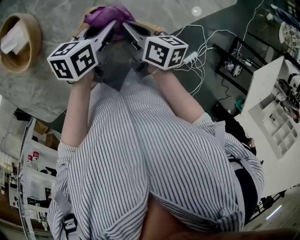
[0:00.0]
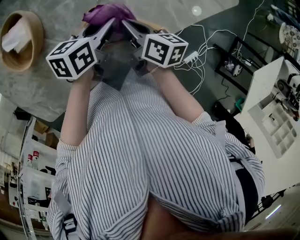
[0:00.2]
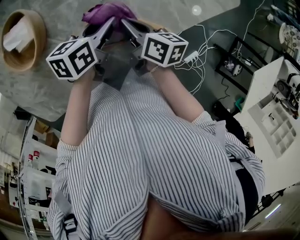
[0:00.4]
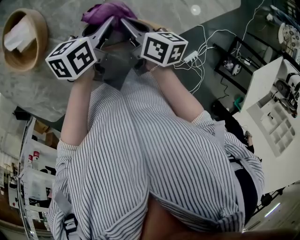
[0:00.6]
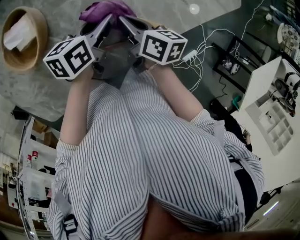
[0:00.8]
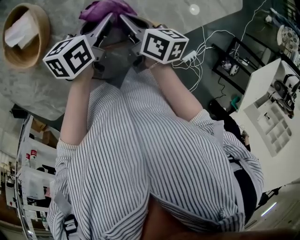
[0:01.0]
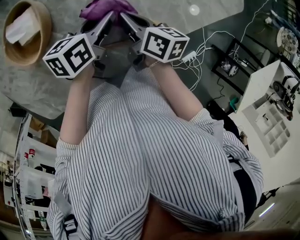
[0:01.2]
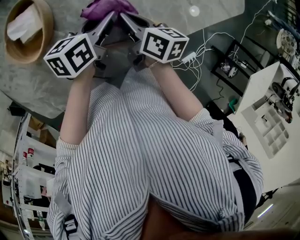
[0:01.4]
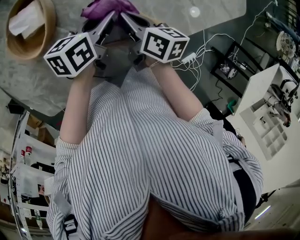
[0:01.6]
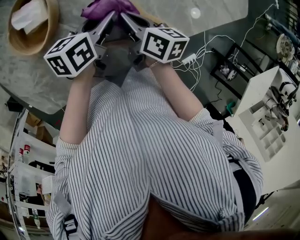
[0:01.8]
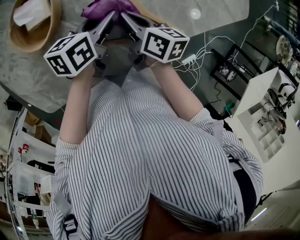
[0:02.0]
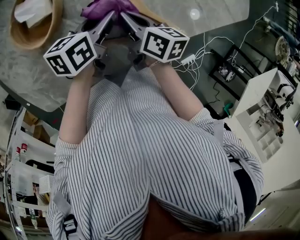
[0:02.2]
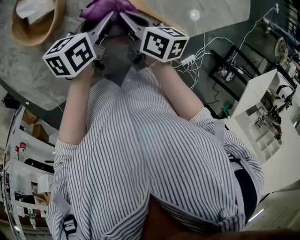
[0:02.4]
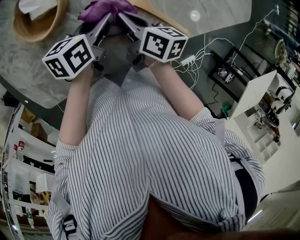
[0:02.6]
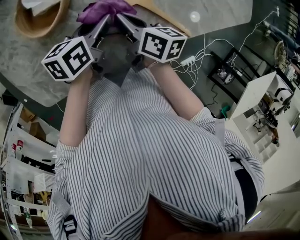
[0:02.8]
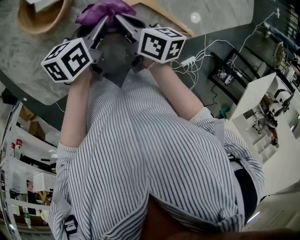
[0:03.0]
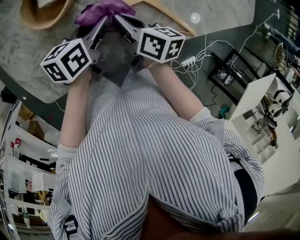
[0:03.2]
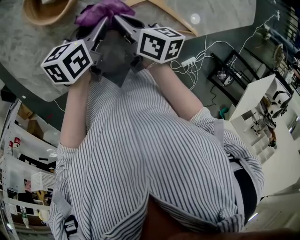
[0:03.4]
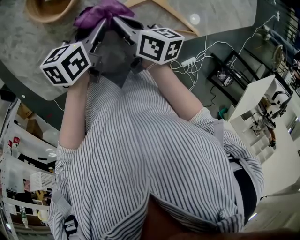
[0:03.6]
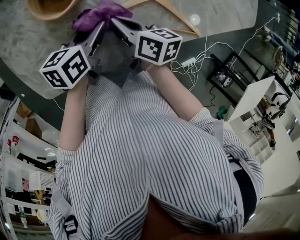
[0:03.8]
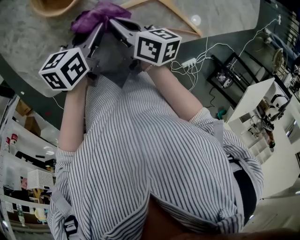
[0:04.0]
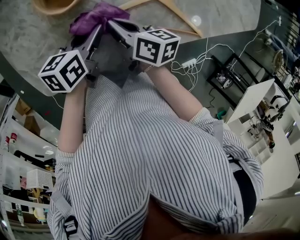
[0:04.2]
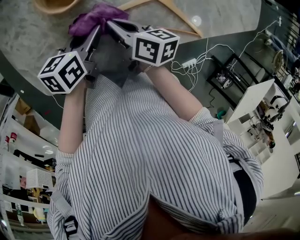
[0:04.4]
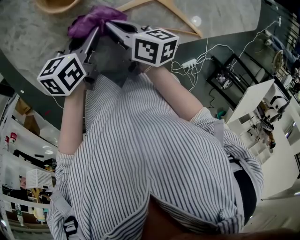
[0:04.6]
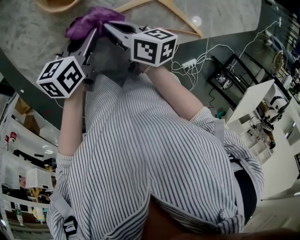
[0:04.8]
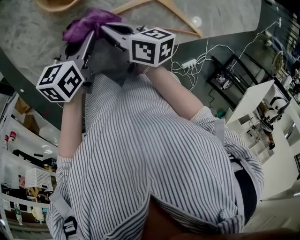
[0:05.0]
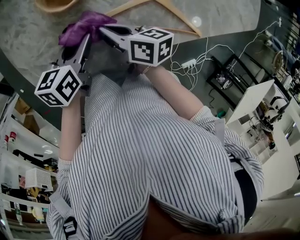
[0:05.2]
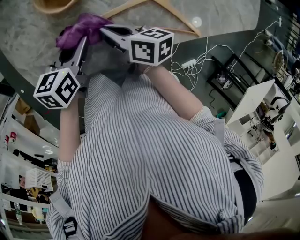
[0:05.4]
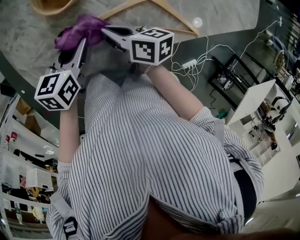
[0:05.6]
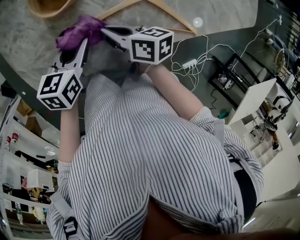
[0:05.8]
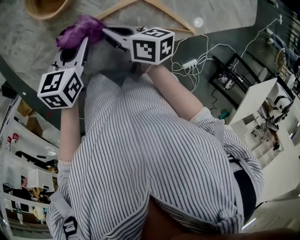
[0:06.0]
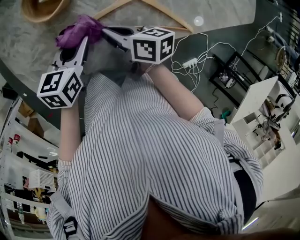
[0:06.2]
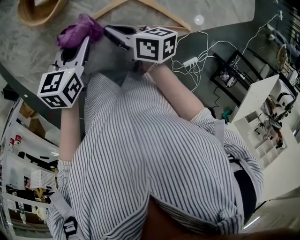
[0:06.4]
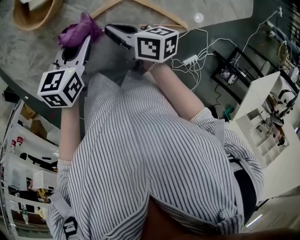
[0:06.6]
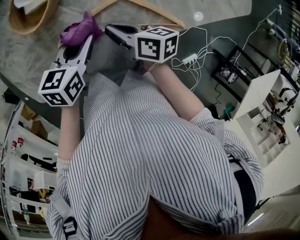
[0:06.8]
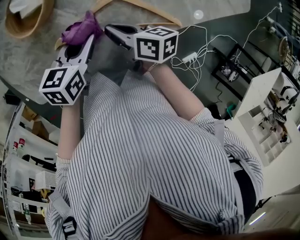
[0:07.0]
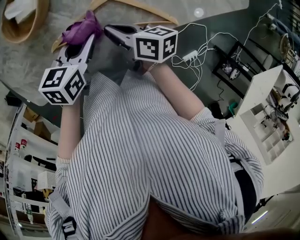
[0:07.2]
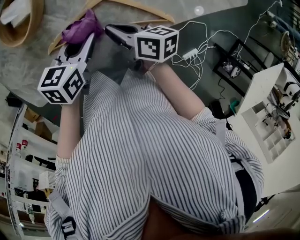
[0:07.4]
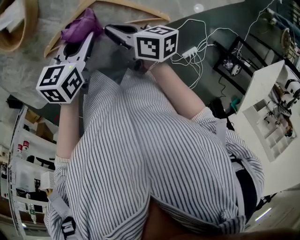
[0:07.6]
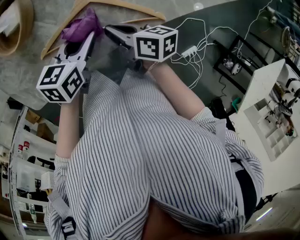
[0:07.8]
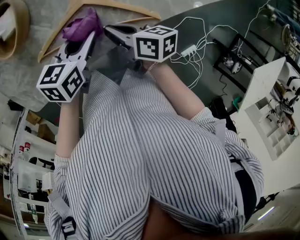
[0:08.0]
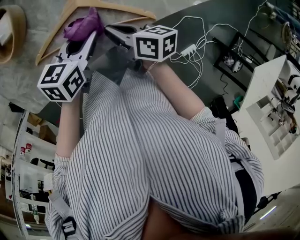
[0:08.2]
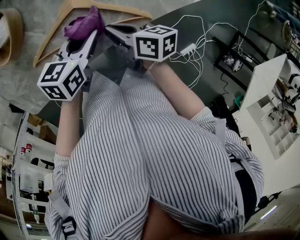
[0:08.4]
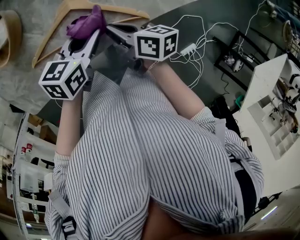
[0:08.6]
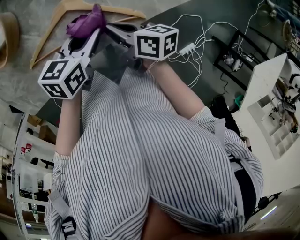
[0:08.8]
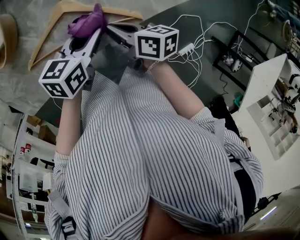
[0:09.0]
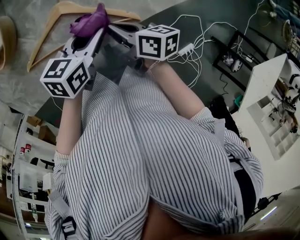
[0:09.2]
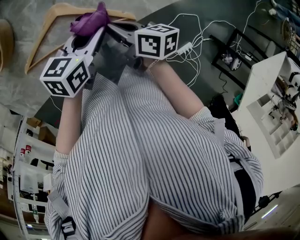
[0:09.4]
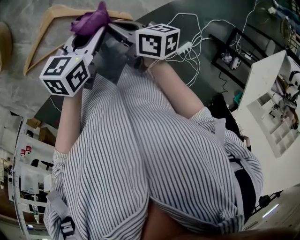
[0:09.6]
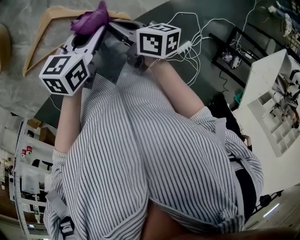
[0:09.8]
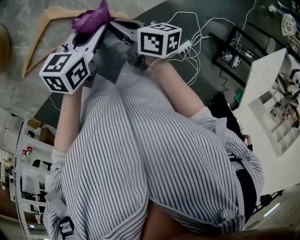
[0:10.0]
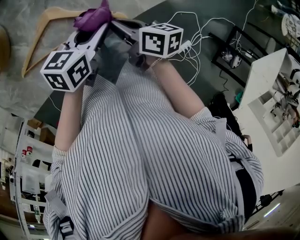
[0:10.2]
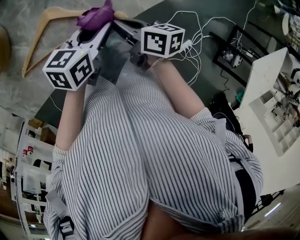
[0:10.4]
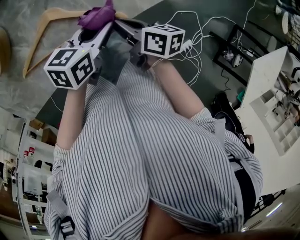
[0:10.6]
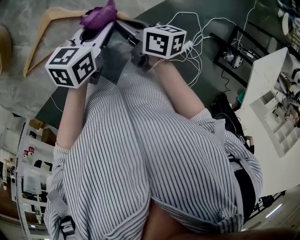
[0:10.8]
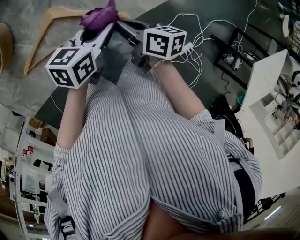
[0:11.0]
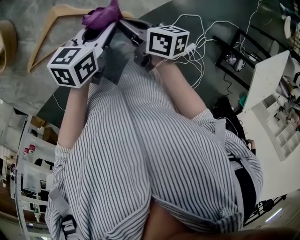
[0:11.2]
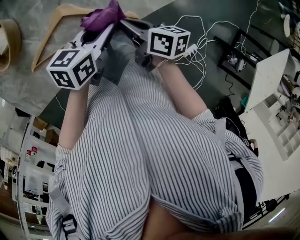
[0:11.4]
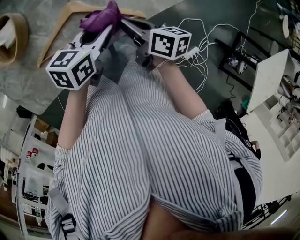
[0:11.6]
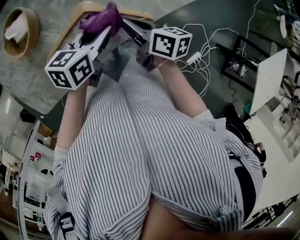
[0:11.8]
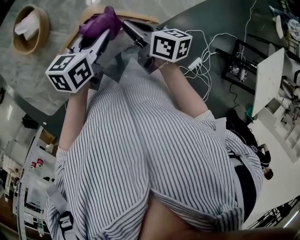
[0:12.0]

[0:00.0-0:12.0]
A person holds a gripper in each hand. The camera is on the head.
0:00.0 to 0:01.6: The grippers both shift to the left by roughly 10 cm.
0:01.6 to 0:03.0: The left gripper moves to the left and backward, about 10 cm. Meanwhile the right gripper shifts some 5 cm to the left.
0:03.0 to 0:04.4: The right gripper goes roughly 10 cm to the left. The left gripper travels to the left and backward by some 10 cm.
0:04.4 to 0:06.0: The grippers move only a little.
0:06.0 to 0:07.6: The two grippers go approximately 15 cm to the right.
0:07.6 to 0:09.0: The two grippers go about 10 cm to the right.
0:09.0 to 0:10.4: The two grippers go about 5 cm to the right.
0:10.4 to 0:12.0: Both grippers travel together to the left and upward, about 15 cm.

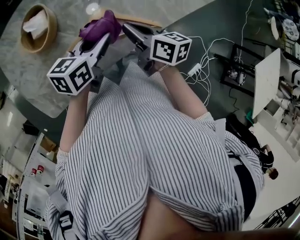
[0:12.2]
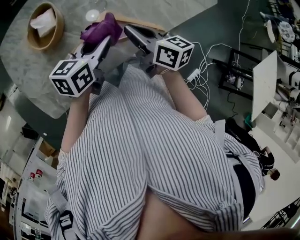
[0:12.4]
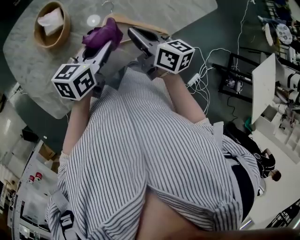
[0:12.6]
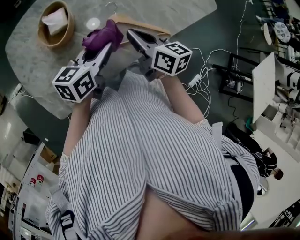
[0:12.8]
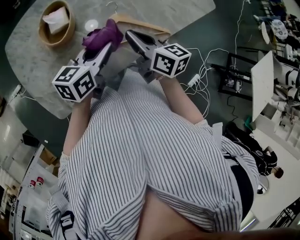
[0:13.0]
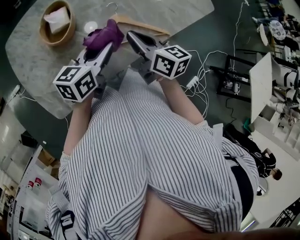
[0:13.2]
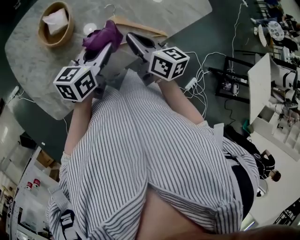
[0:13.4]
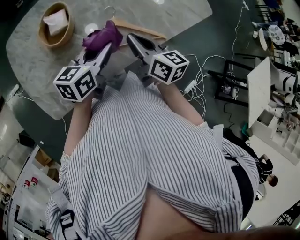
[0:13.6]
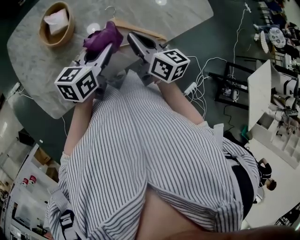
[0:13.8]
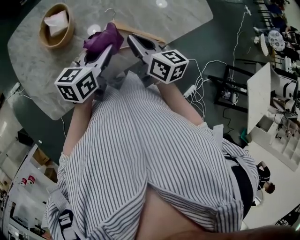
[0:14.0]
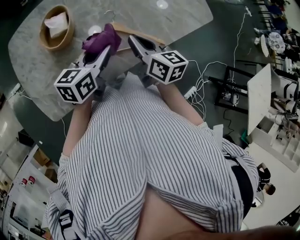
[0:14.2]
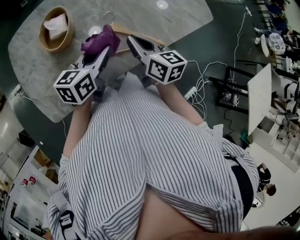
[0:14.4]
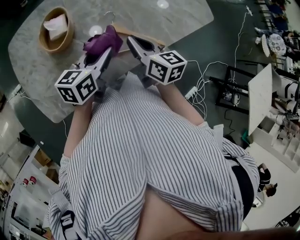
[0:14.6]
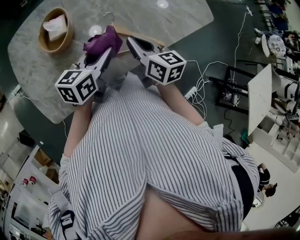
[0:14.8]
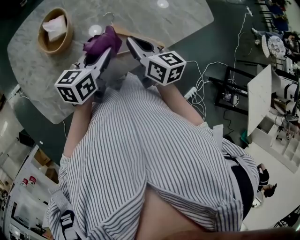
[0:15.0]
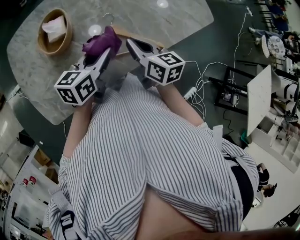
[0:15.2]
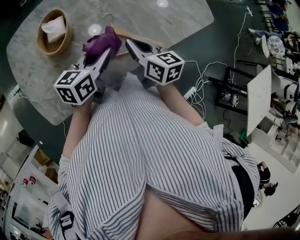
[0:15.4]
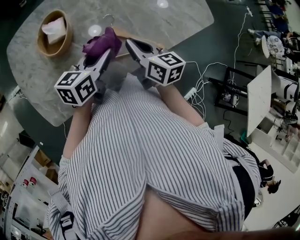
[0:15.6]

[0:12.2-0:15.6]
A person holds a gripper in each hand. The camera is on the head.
0:12.2 to 0:13.8: The right gripper moves upward, approximately 5 cm. Meanwhile the left gripper shifts some 5 cm to the left.
0:13.8 to 0:15.6: The grippers move only a little.

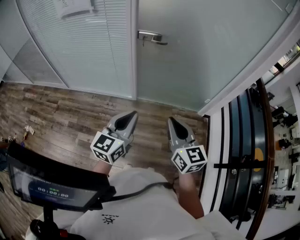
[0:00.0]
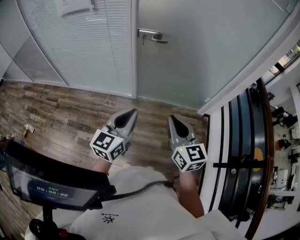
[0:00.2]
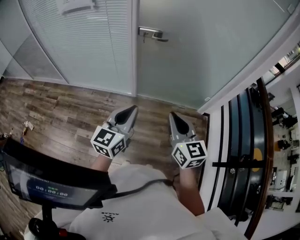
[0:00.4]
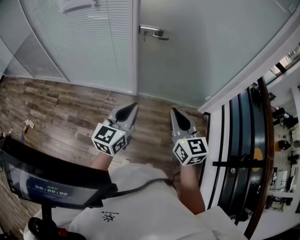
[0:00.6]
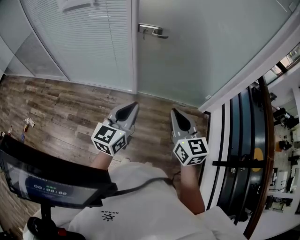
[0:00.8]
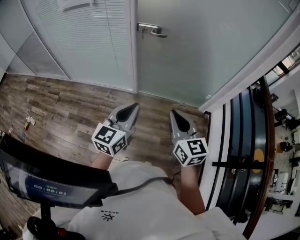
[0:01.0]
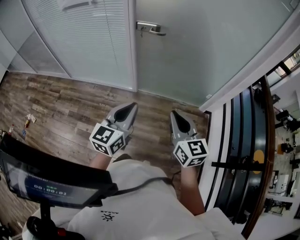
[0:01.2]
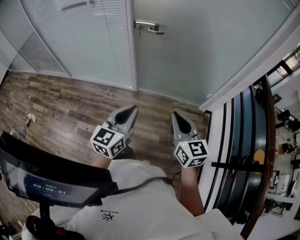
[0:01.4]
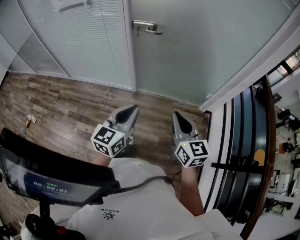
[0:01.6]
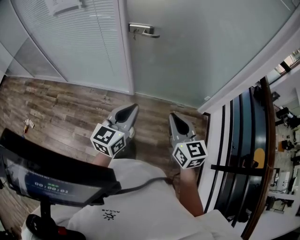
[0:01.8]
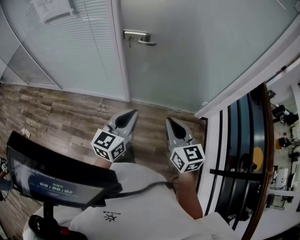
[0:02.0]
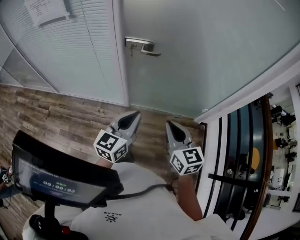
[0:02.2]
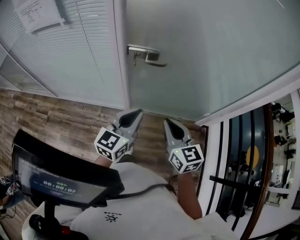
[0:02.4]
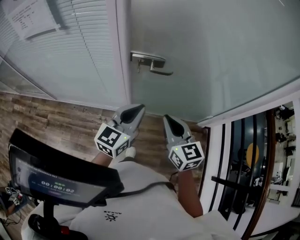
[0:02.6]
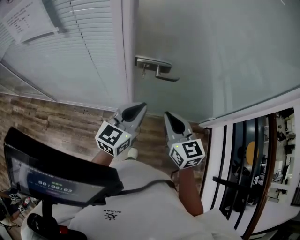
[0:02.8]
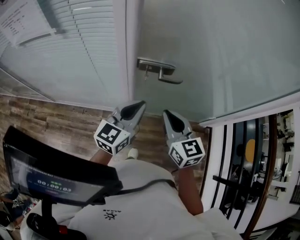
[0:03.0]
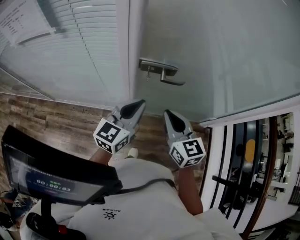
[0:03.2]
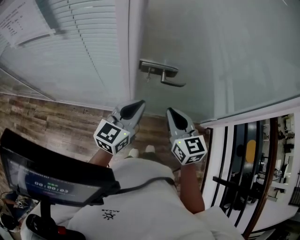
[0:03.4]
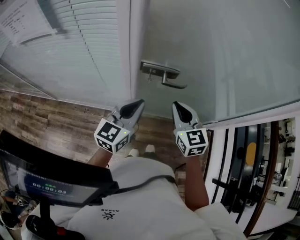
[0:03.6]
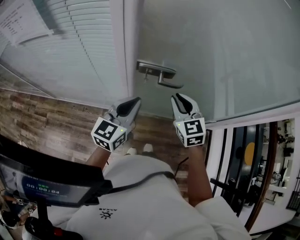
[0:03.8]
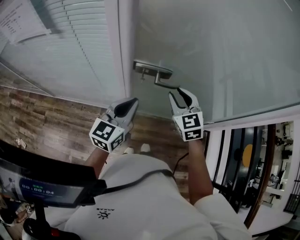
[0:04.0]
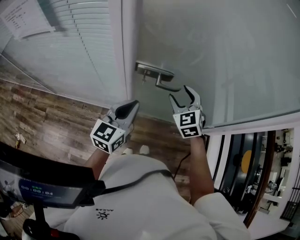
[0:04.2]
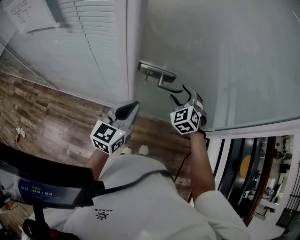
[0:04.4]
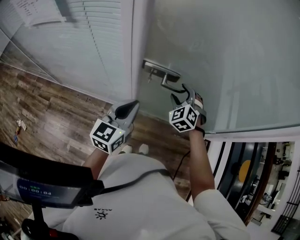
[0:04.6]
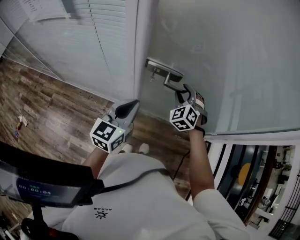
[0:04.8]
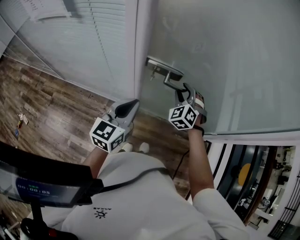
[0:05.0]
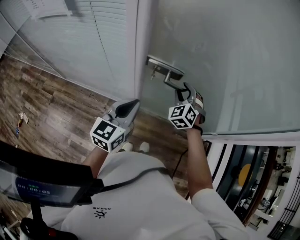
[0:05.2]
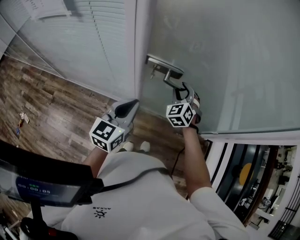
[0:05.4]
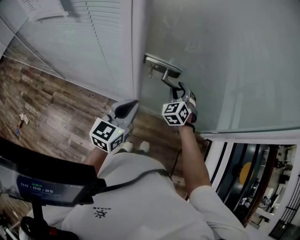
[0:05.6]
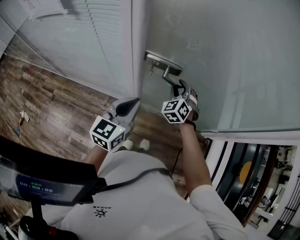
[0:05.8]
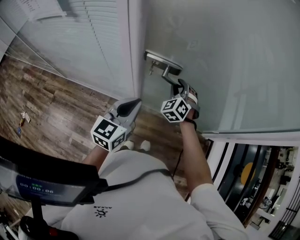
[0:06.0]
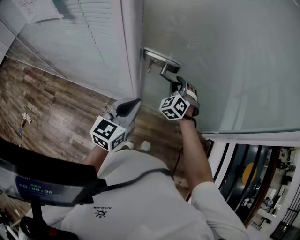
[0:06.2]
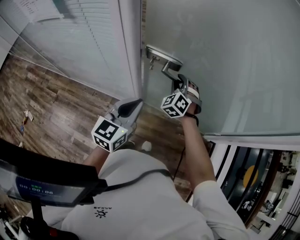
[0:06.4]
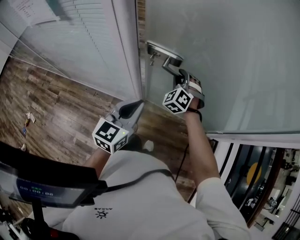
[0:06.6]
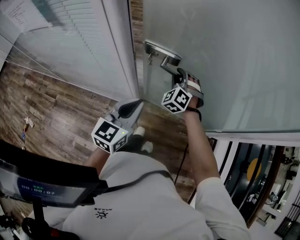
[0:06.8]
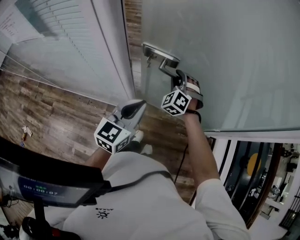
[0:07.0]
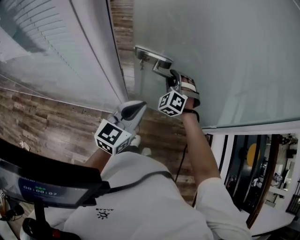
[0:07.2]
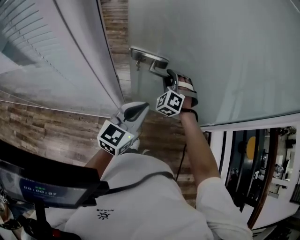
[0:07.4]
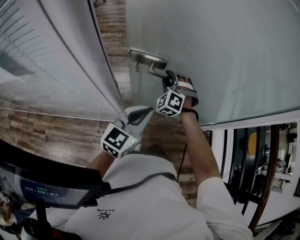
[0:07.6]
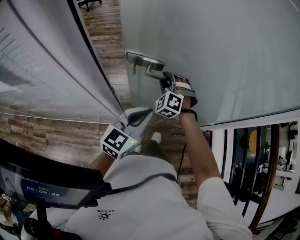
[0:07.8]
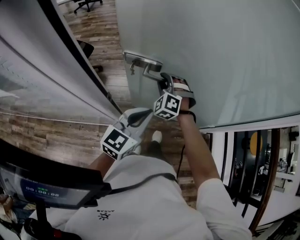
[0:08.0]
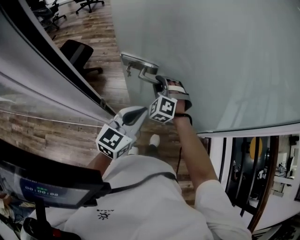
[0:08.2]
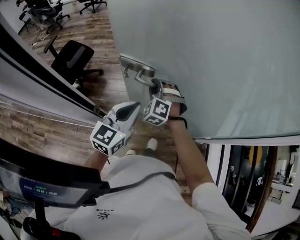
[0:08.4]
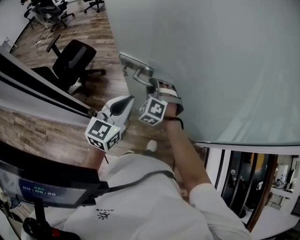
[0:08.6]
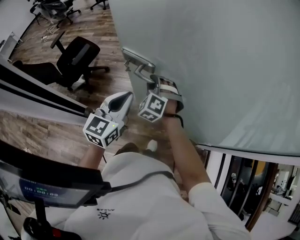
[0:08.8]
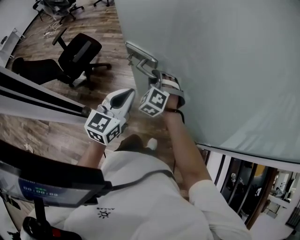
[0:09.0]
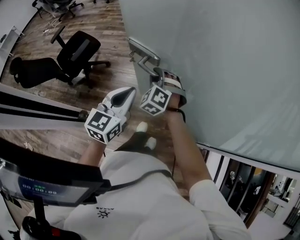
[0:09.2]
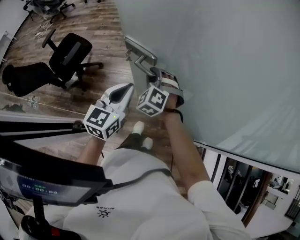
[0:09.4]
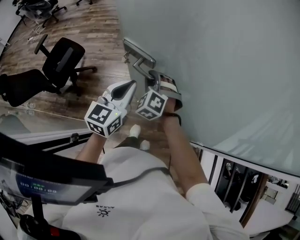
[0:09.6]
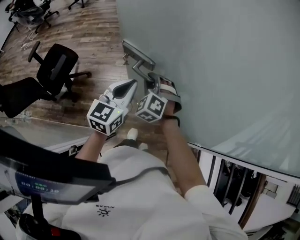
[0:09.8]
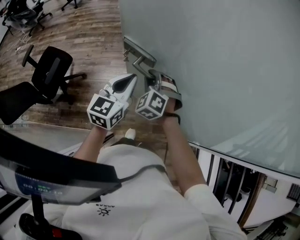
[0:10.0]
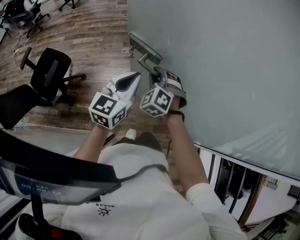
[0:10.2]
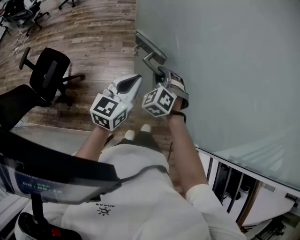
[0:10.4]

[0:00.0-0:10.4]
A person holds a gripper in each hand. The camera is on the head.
0:00.0 to 0:01.4: The grippers both shift to the right by approximately 10 cm.
0:01.4 to 0:03.0: The pair of grippers is taken forward and to the left, approximately 40 cm.
0:03.0 to 0:04.4: The right gripper is displaced forward, downward and to the right by approximately 20 cm, rotates around the line of its fingers by roughly 50 degrees, counterclockwise from behind, and opens up.
0:04.4 to 0:06.0: The right gripper moves to the left, roughly 5 cm, and closes.
0:06.0 to 0:07.4: Both grippers travel together forward, roughly 15 cm.
0:07.4 to 0:09.0: The left gripper moves forward, some 15 cm; the right gripper heads forward, covering some 10 cm.
0:09.0 to 0:10.4: The grippers both shift forward by about 25 cm.
